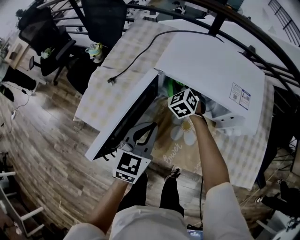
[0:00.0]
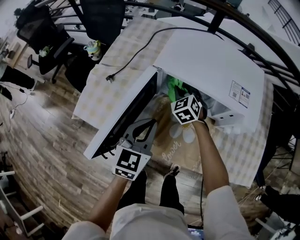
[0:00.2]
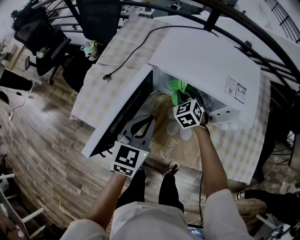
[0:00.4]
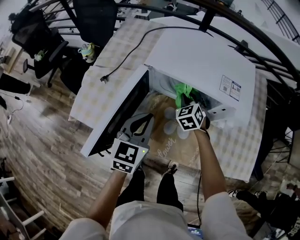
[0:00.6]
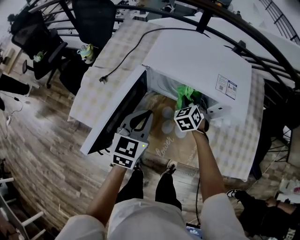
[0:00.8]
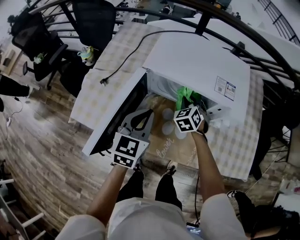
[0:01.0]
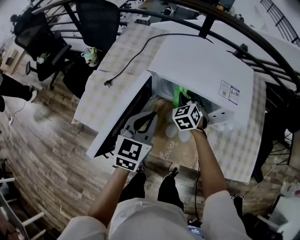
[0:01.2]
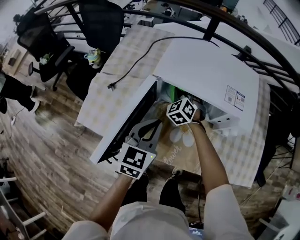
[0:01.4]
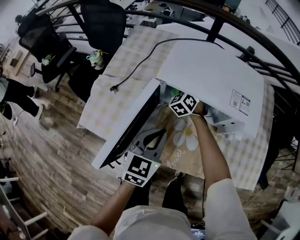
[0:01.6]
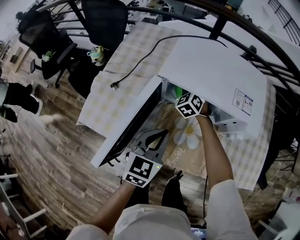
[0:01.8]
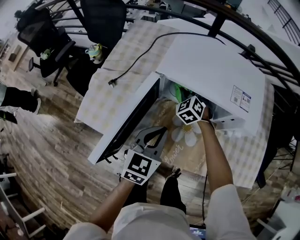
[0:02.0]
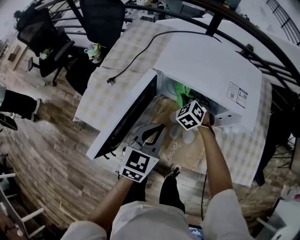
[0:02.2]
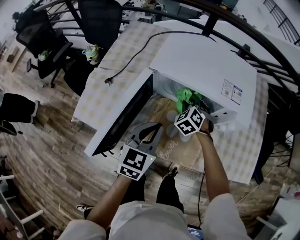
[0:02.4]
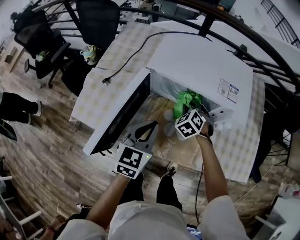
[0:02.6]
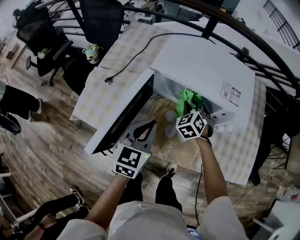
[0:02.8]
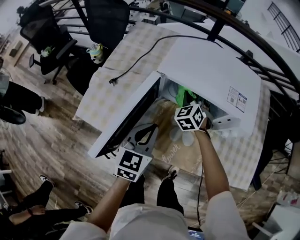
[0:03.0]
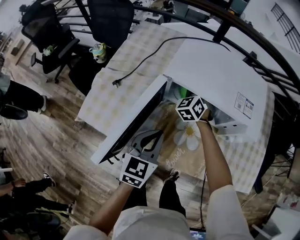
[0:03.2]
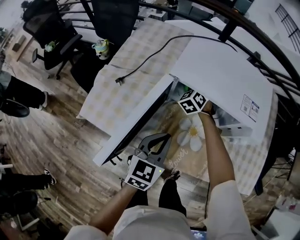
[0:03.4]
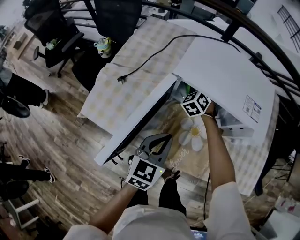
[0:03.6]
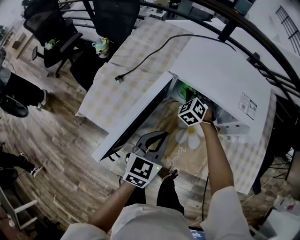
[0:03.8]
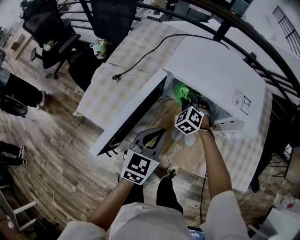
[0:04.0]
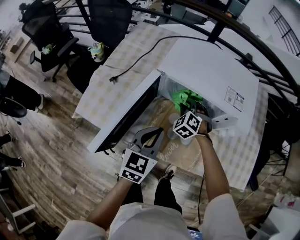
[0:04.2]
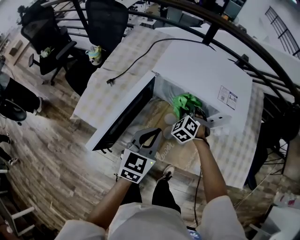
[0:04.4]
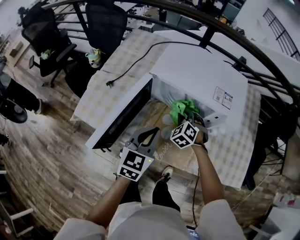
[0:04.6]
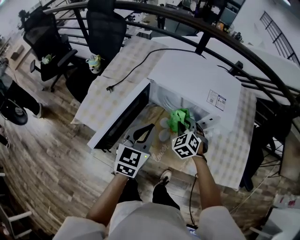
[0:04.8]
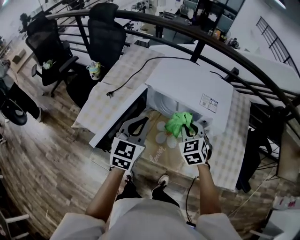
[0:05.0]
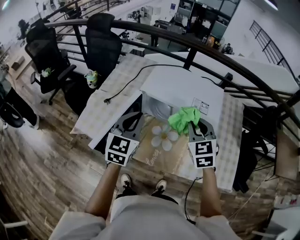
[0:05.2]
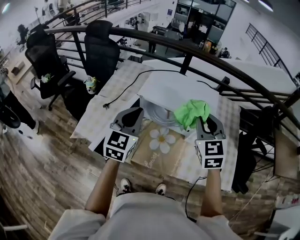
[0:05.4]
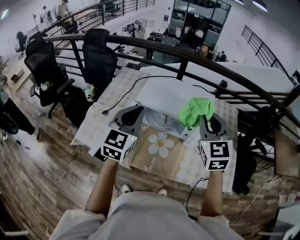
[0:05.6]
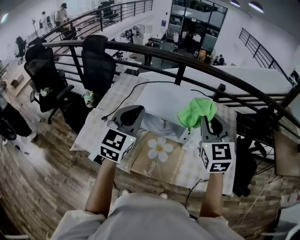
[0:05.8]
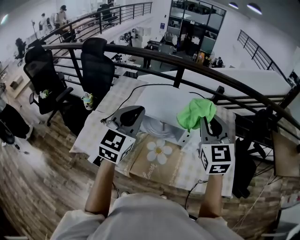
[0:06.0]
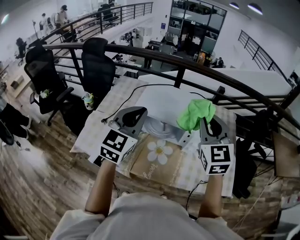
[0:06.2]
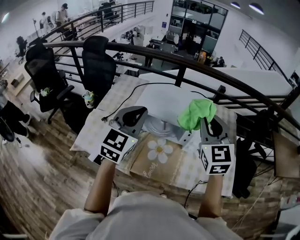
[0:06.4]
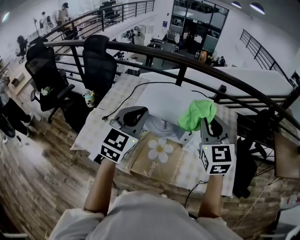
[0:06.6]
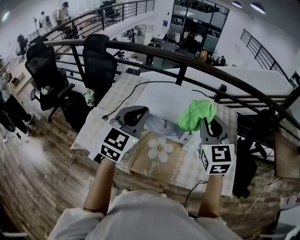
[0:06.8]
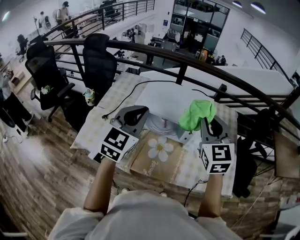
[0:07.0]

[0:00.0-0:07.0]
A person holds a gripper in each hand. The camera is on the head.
0.0 to 1.4 s: The right gripper goes to the right and returns, approximately 15 cm each way.
1.4 to 2.8 s: The right gripper heads to the right and backward, covering about 10 cm.
2.8 to 4.2 s: The right gripper moves about 10 cm forward and comes back.
4.2 to 5.6 s: The left gripper heads upward, covering approximately 25 cm, and rotates about 20 degrees; the right gripper is displaced upward by approximately 40 cm, and points its fingers some 30 degrees further upward.
5.6 to 7.0 s: There are only small adjustments of the grippers.

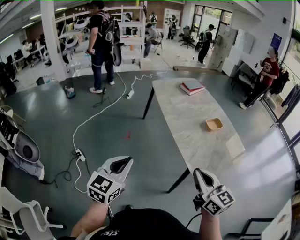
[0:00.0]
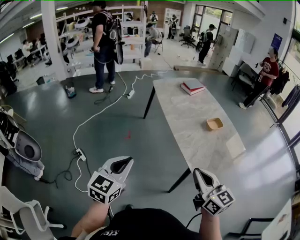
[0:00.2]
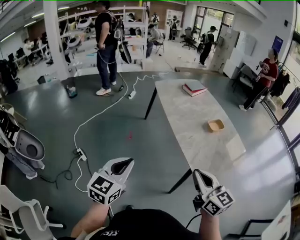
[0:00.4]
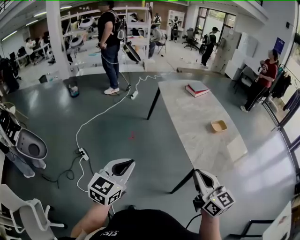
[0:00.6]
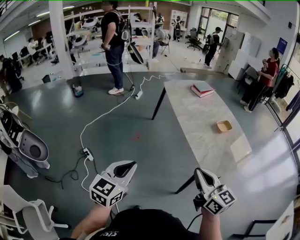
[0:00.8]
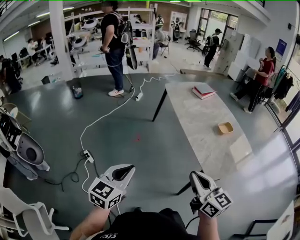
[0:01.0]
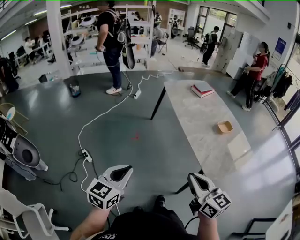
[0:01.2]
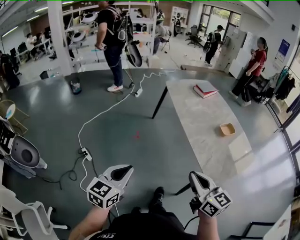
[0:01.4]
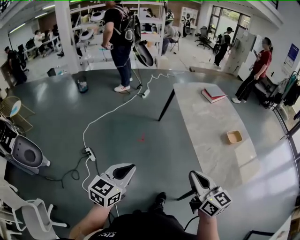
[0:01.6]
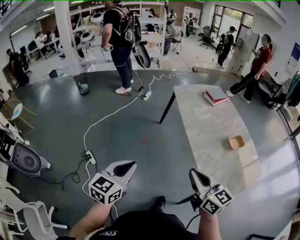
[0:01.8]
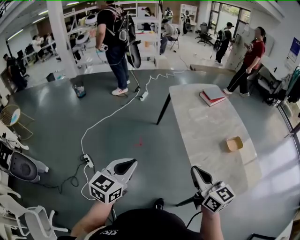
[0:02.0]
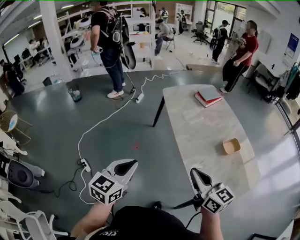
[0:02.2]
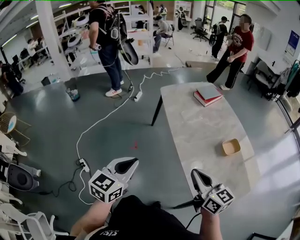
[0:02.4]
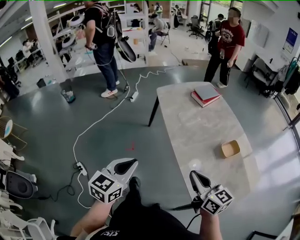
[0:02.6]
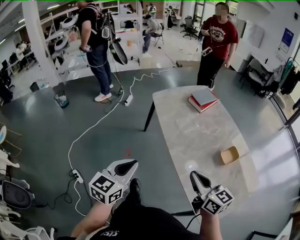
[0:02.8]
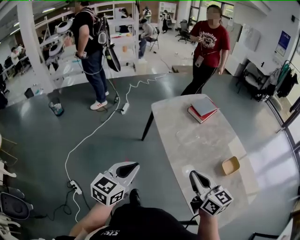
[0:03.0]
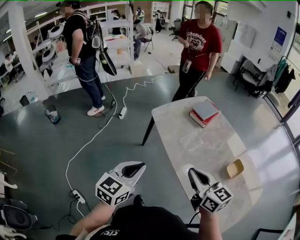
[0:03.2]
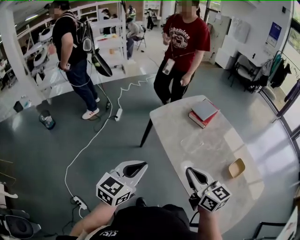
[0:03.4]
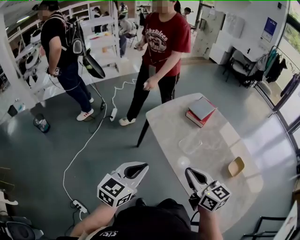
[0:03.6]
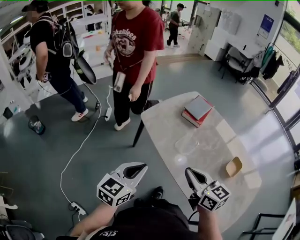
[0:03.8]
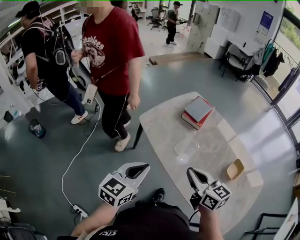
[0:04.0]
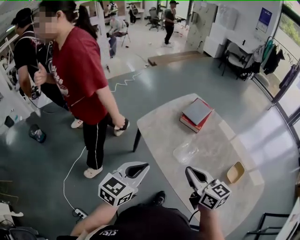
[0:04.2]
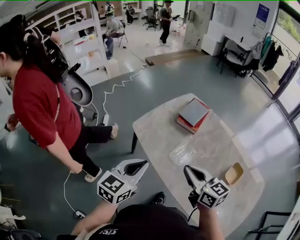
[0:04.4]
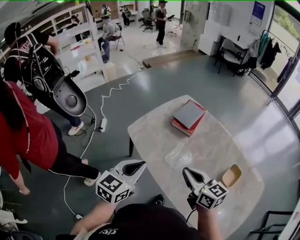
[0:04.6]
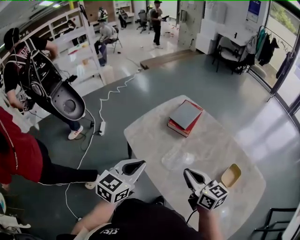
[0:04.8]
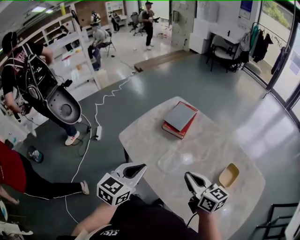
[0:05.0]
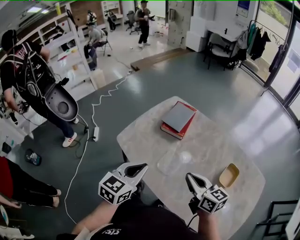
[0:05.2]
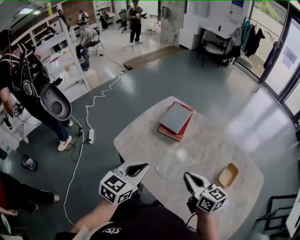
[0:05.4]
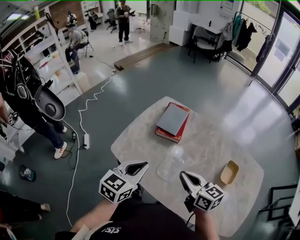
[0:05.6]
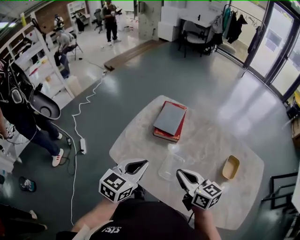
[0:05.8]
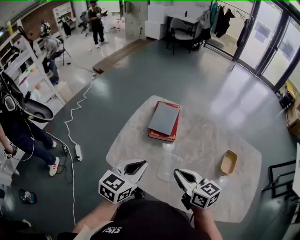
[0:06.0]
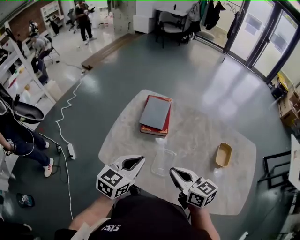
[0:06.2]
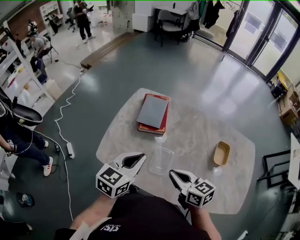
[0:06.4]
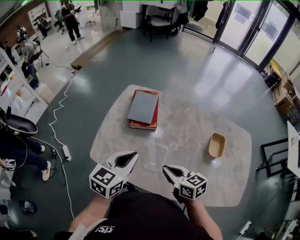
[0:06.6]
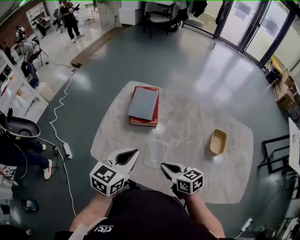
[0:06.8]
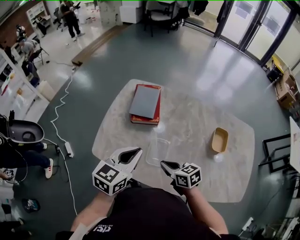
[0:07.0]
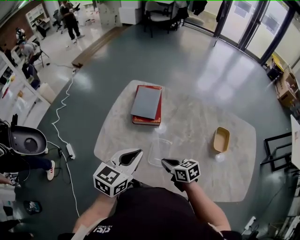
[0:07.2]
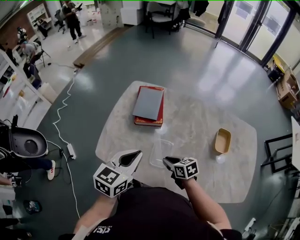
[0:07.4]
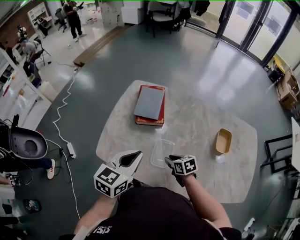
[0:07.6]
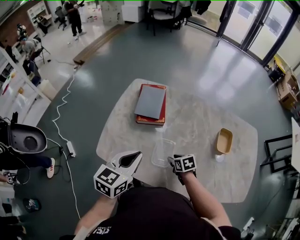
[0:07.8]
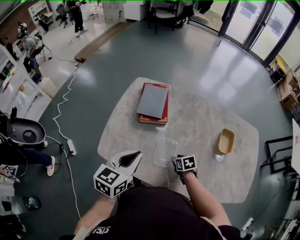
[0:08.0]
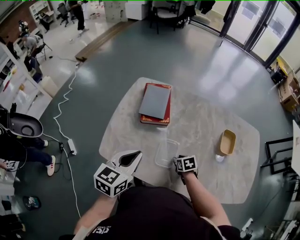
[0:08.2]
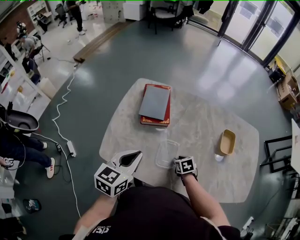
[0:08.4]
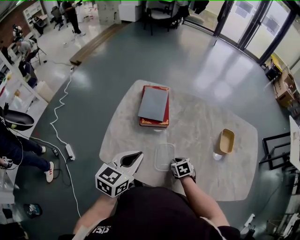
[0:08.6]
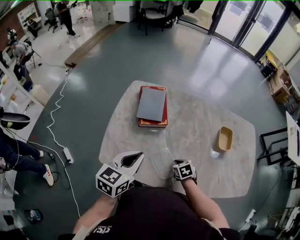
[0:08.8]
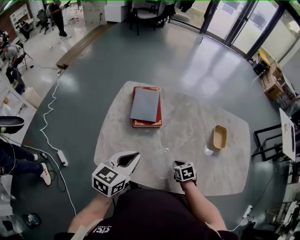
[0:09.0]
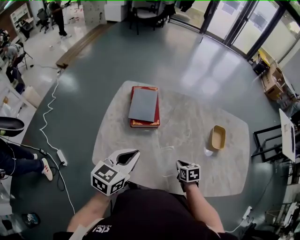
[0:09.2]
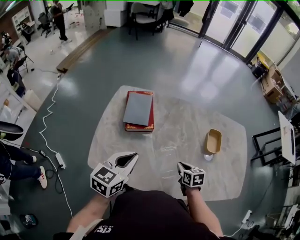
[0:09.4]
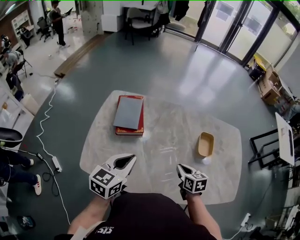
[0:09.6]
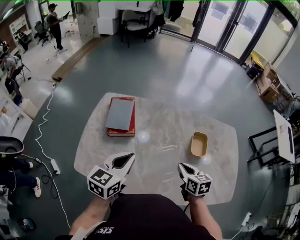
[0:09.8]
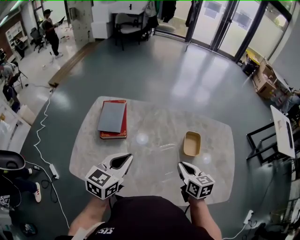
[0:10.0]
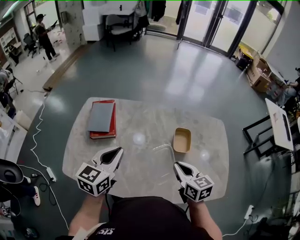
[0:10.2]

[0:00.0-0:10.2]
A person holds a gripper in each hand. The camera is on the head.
0.0 to 1.4 s: The right gripper moves to the left, some 10 cm. The left gripper is displaced to the left and downward by about 10 cm.
1.4 to 3.0 s: Both grippers are carried forward, approximately 40 cm.
3.0 to 4.4 s: The two grippers go some 25 cm forward.
4.4 to 5.8 s: The right gripper goes some 10 cm forward; the left gripper shifts some 20 cm forward, and changes its angle by approximately 20 degrees.
5.8 to 7.2 s: The right gripper heads downward, covering approximately 15 cm, and rotates roughly 20 degrees.
7.2 to 8.8 s: The right gripper goes roughly 10 cm downward, swivels about 30 degrees, and opens, then closes again. The left gripper is displaced to the left by some 5 cm.
8.8 to 10.2 s: The right gripper moves upward and to the right, roughly 35 cm, and tips its fingers upward by some 40 degrees, while the left gripper is displaced to the right by roughly 20 cm.

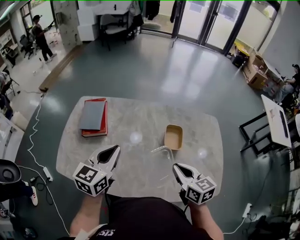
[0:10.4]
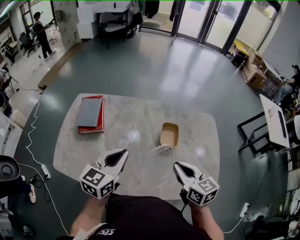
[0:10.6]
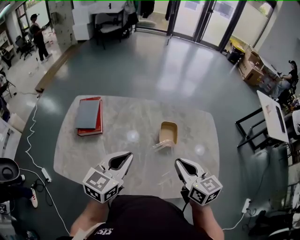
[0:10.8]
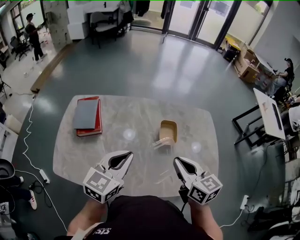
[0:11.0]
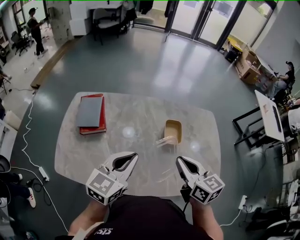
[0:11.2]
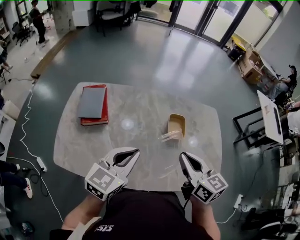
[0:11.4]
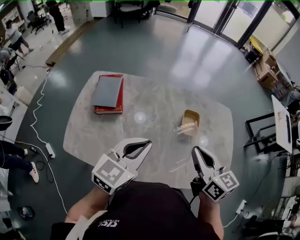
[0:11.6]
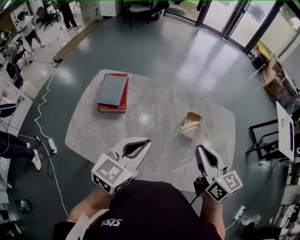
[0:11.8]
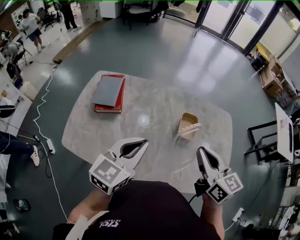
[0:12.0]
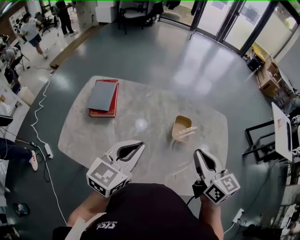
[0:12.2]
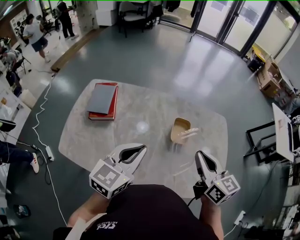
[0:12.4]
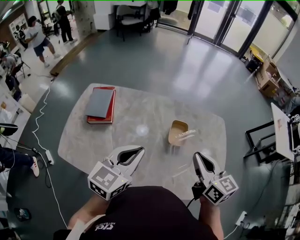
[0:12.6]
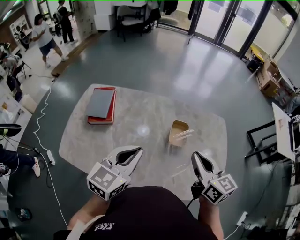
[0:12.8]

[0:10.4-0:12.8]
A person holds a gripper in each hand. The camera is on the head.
10.4 to 11.6 s: The right gripper goes about 10 cm upward, while the left gripper ends up approximately 5 cm from where it was.
11.6 to 12.8 s: The left gripper goes about 5 cm to the right, while the right gripper is displaced to the right by approximately 10 cm.

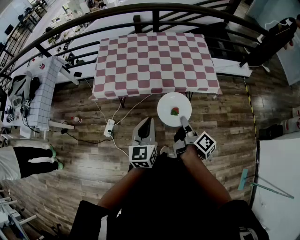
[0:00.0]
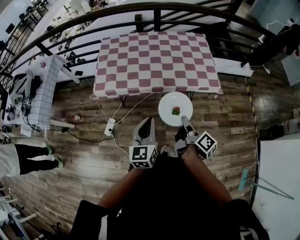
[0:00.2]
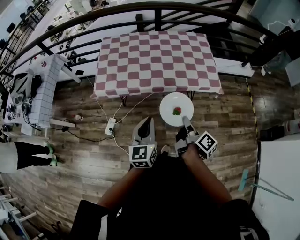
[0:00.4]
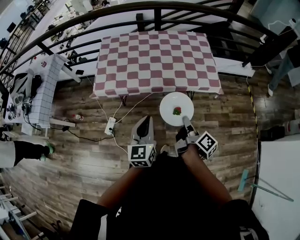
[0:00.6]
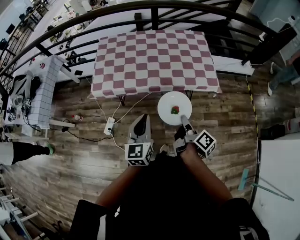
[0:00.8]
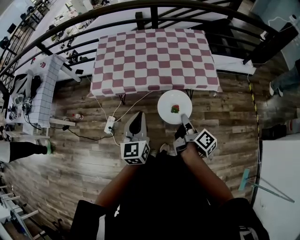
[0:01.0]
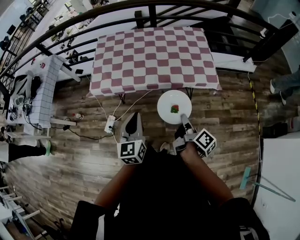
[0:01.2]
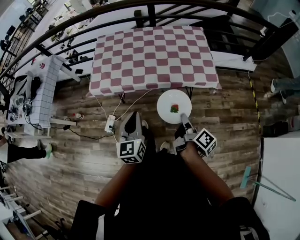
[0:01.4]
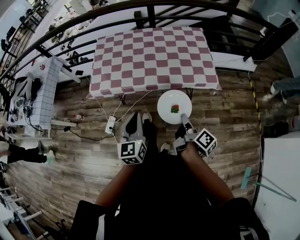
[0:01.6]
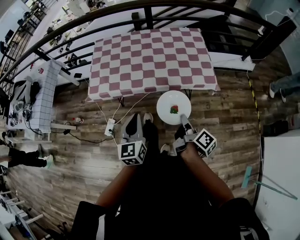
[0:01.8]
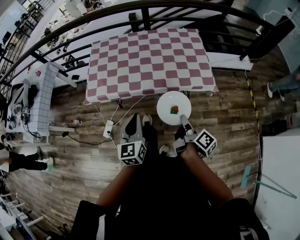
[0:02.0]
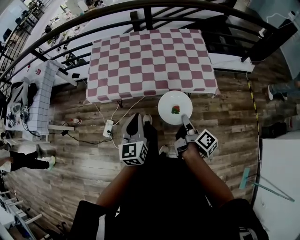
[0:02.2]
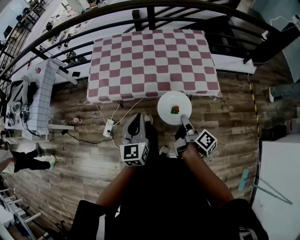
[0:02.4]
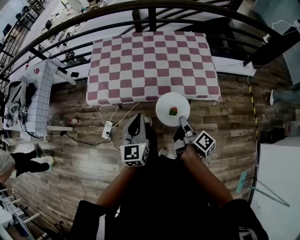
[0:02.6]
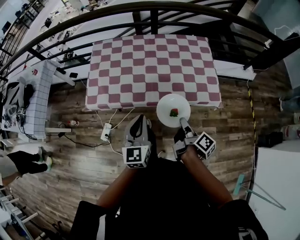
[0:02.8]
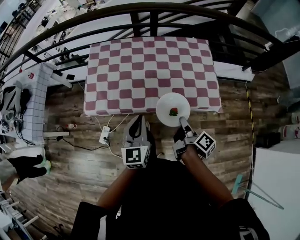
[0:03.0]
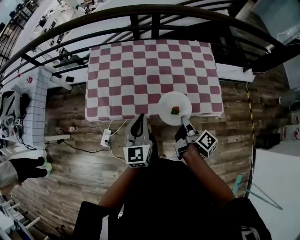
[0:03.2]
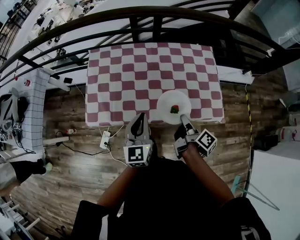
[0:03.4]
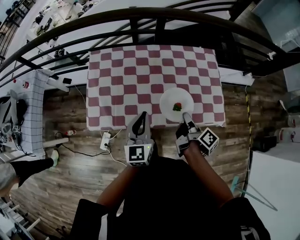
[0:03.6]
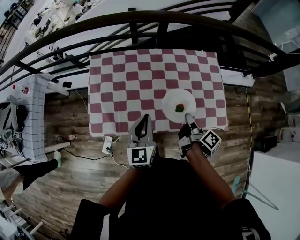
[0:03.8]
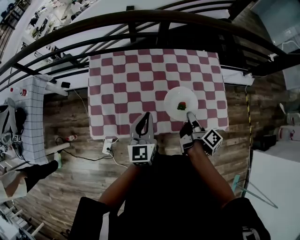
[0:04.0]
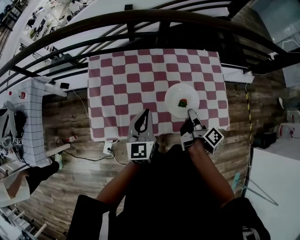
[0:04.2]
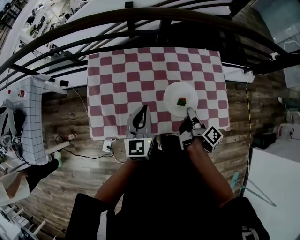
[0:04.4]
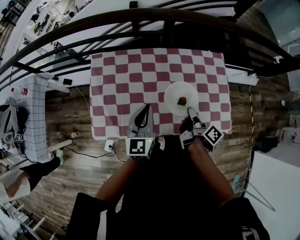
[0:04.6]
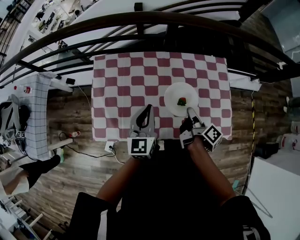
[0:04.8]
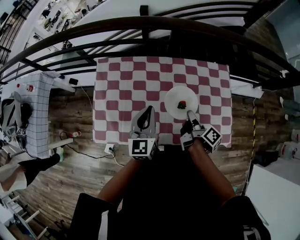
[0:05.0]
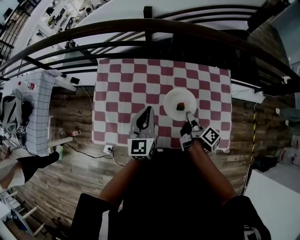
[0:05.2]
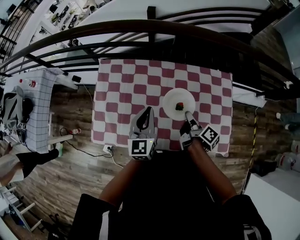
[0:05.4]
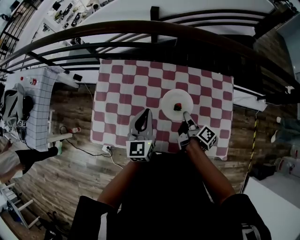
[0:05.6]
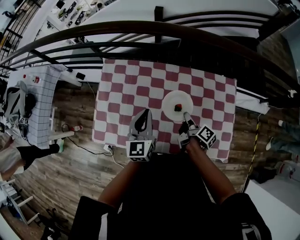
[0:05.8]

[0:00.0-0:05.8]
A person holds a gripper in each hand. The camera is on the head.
1.4 to 2.8 s: The left gripper ends up roughly 15 cm from where it was.
2.8 to 4.4 s: The left gripper changes place by roughly 30 cm.
4.4 to 5.8 s: The left gripper ends up some 10 cm from where it was.
